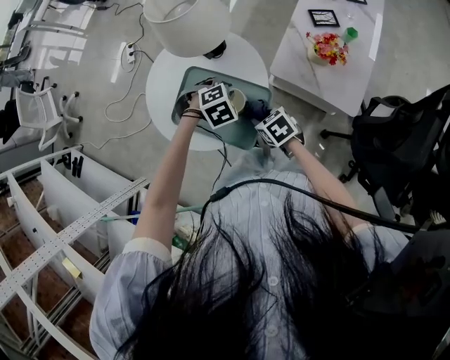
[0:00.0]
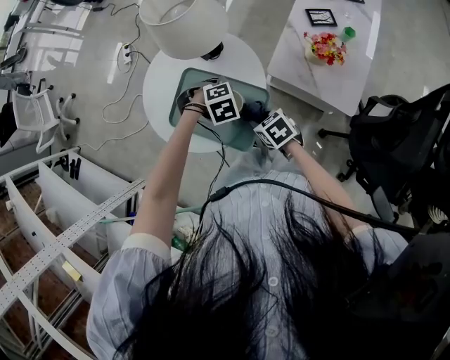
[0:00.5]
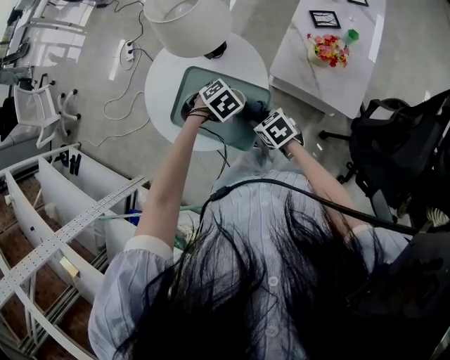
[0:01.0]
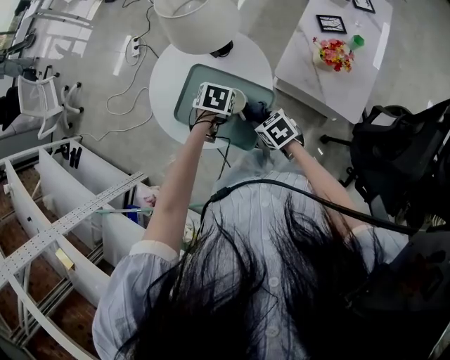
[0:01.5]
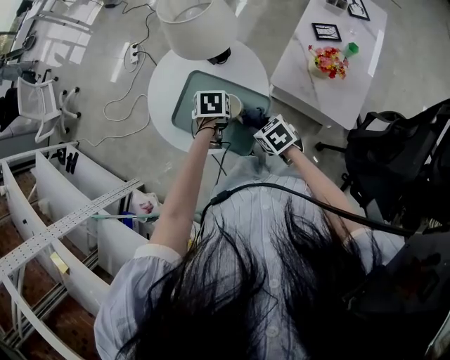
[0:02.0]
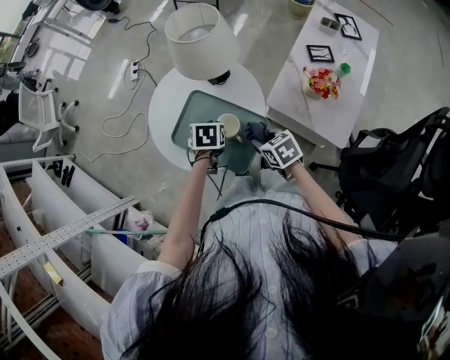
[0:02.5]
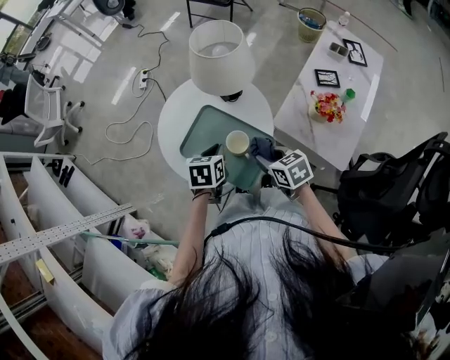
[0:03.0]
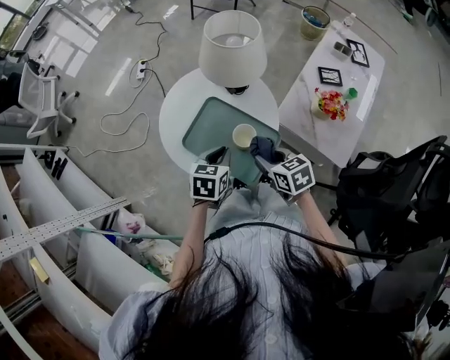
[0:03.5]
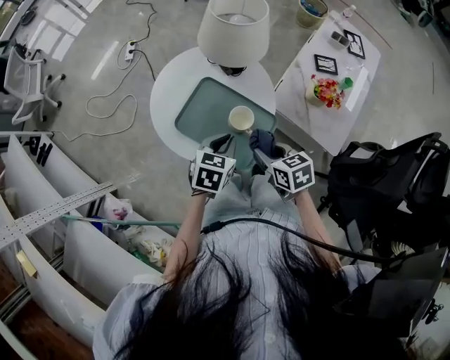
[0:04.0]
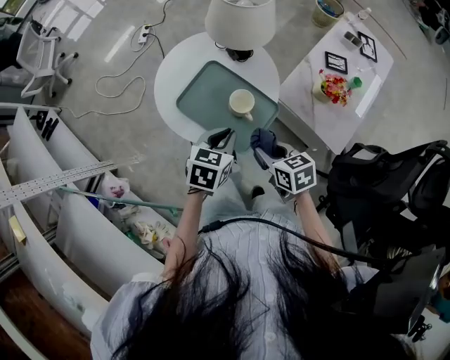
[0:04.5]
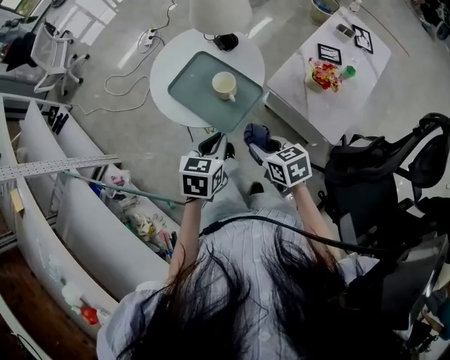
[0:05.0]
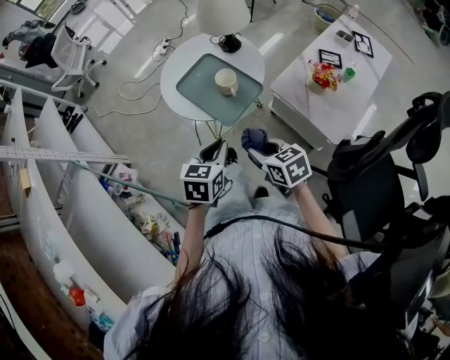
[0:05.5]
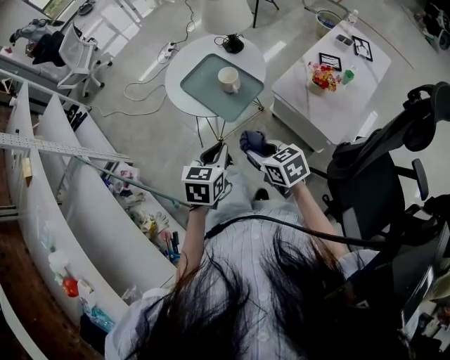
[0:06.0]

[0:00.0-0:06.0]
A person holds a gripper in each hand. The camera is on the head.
0:00.0 to 0:02.0: The left gripper ends up about 5 cm from where it was, and rolls counterclockwise, seen from behind, by roughly 70 degrees.
0:02.0 to 0:04.0: The right gripper moves upward, some 10 cm. The left gripper is displaced backward and upward by roughly 15 cm, and turns by some 30 degrees.
0:04.0 to 0:06.0: Both grippers travel together backward, roughly 25 cm. The left gripper turns by some 20 degrees; the right gripper swivels about 20 degrees.

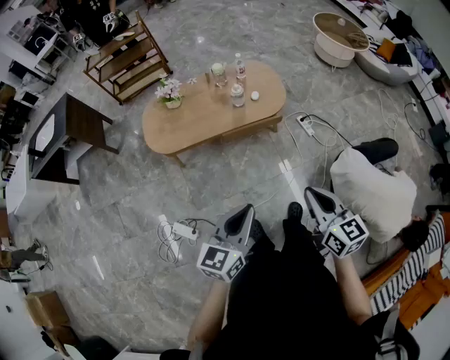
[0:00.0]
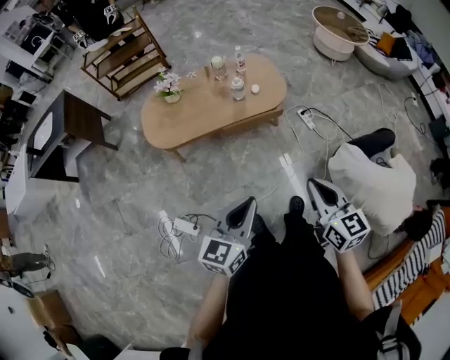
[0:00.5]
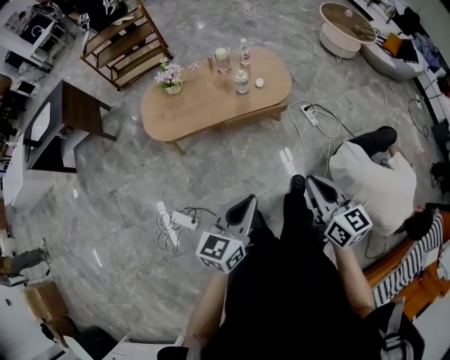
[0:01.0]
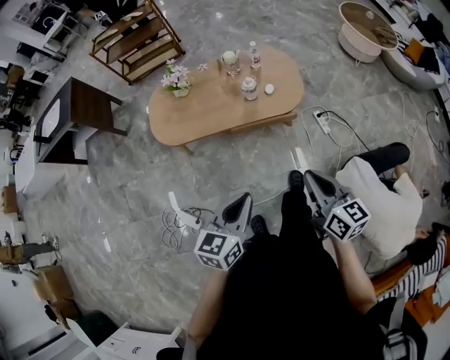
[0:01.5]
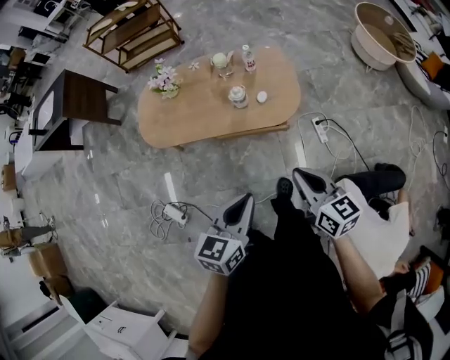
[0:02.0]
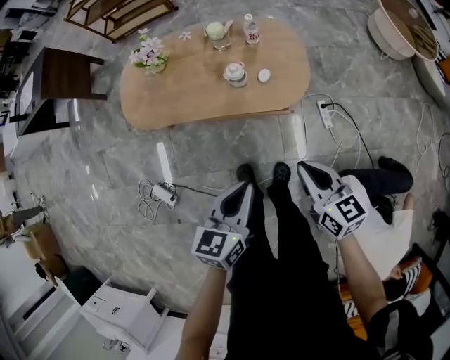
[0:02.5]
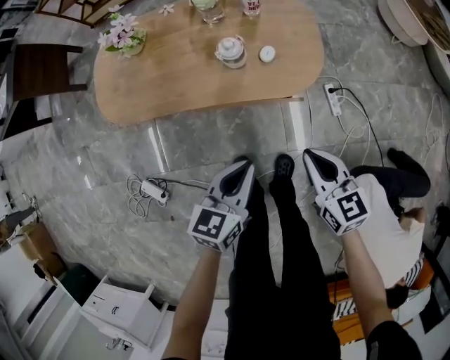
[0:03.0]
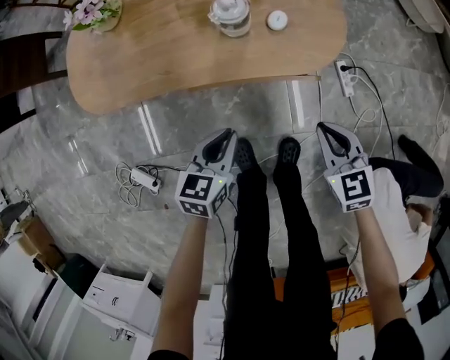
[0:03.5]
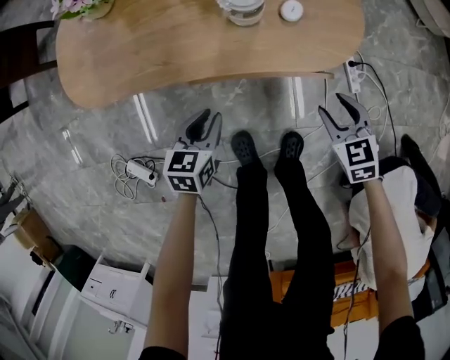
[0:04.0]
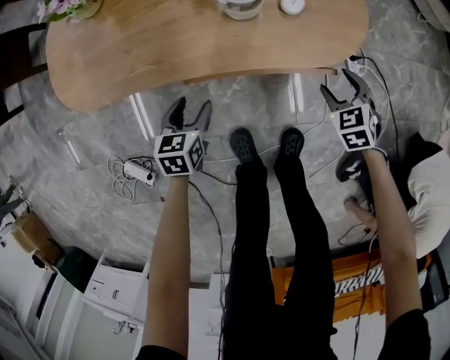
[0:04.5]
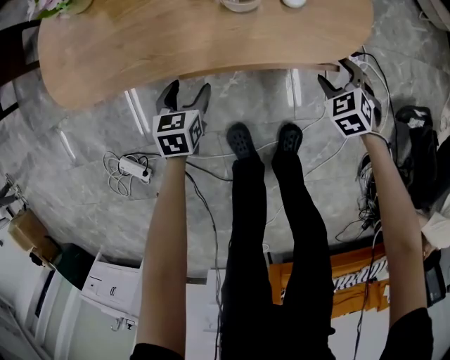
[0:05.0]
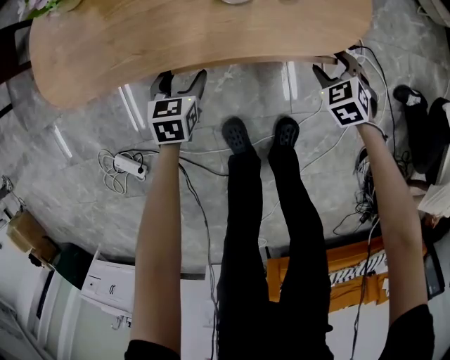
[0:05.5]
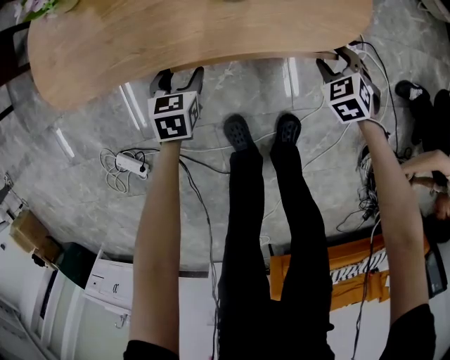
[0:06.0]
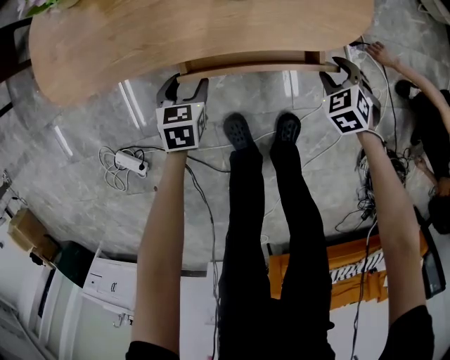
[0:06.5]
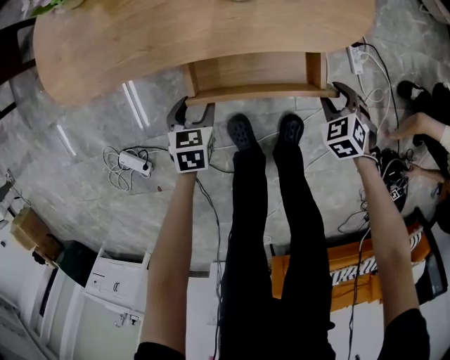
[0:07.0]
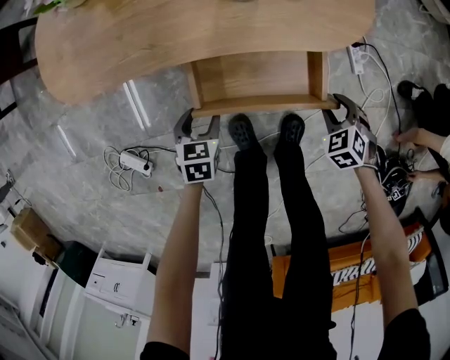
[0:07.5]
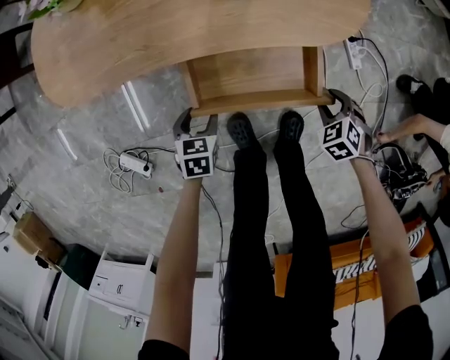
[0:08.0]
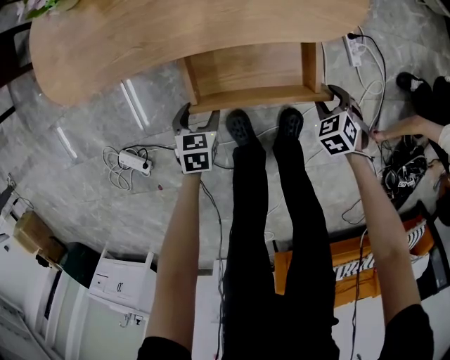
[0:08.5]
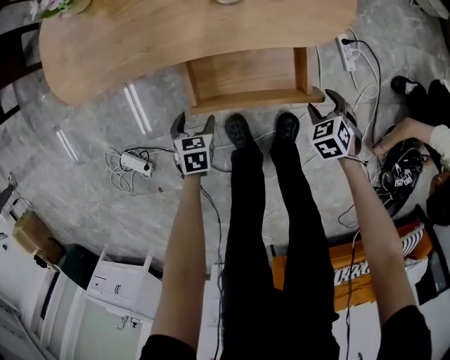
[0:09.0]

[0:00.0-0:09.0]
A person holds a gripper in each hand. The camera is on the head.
0:00.0 to 0:02.0: The left gripper goes approximately 25 cm forward and to the right. Meanwhile the right gripper goes approximately 30 cm forward, and changes its angle by about 20 degrees.
0:02.0 to 0:04.5: Both grippers move downward, some 50 cm. The right gripper points its fingers about 40 degrees further downward, and opens. The left gripper turns by some 20 degrees, and opens its fingers.
0:04.5 to 0:07.0: The right gripper heads backward, covering about 10 cm. The left gripper changes place by some 5 cm.
0:07.0 to 0:09.0: The left gripper travels backward by roughly 5 cm.

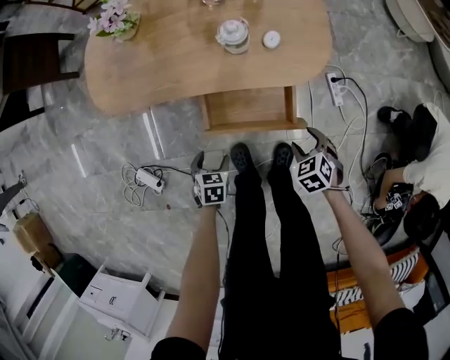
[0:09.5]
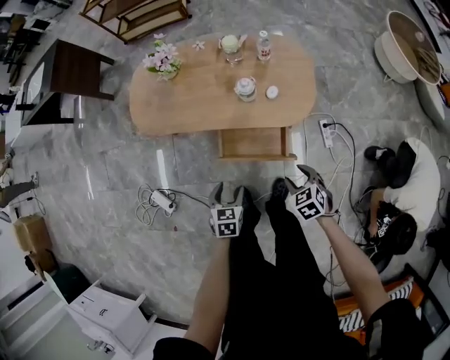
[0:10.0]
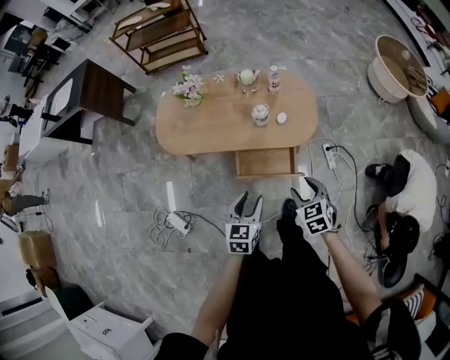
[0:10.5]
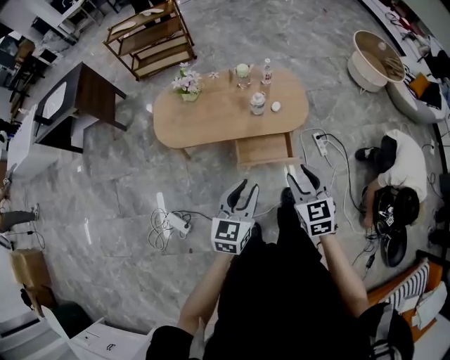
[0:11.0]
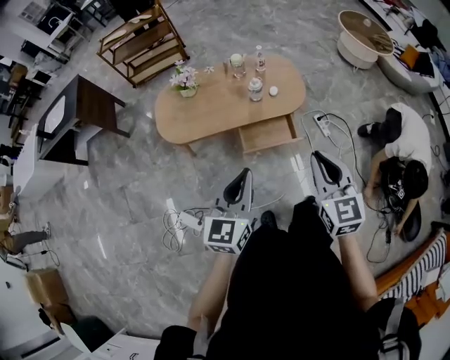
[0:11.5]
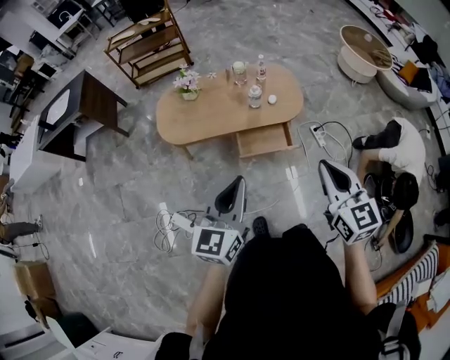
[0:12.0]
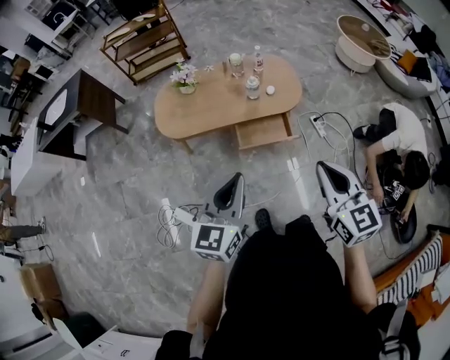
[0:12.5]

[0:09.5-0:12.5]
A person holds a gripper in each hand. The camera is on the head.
0:09.5 to 0:11.0: The two grippers go approximately 50 cm upward. The right gripper points its fingers approximately 40 degrees further upward. The left gripper tips its fingers upward by roughly 50 degrees, and closes.
0:11.0 to 0:12.5: The two grippers go about 15 cm backward and upward. The right gripper closes.

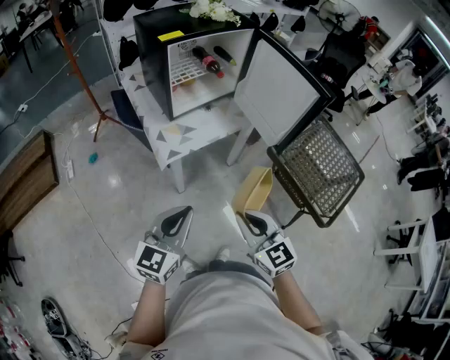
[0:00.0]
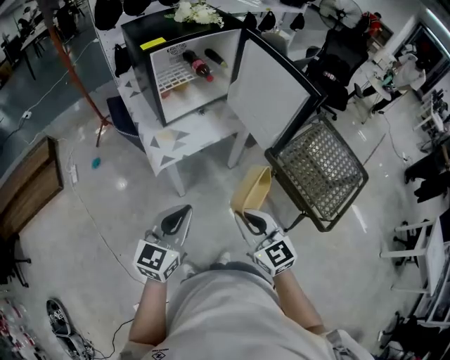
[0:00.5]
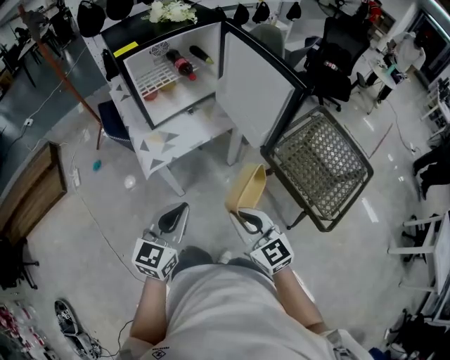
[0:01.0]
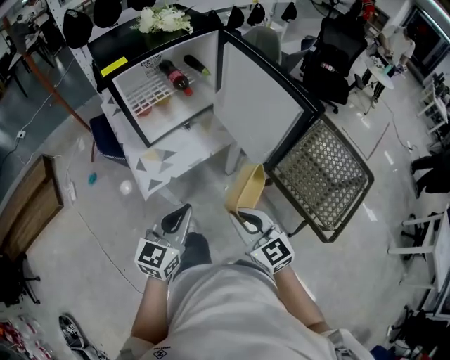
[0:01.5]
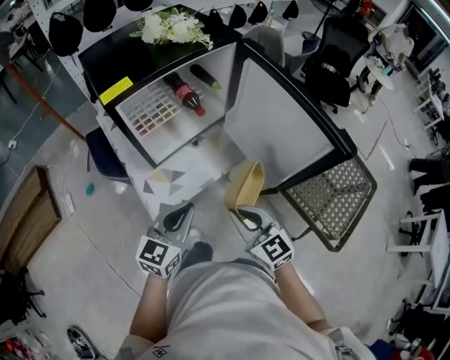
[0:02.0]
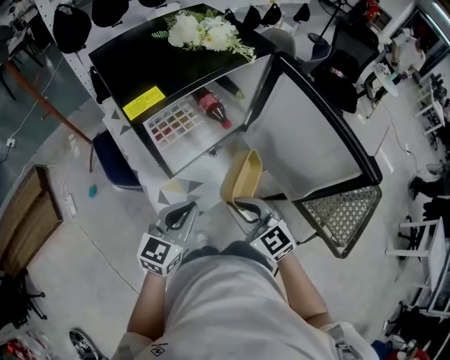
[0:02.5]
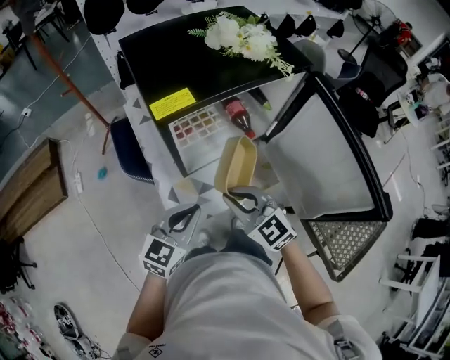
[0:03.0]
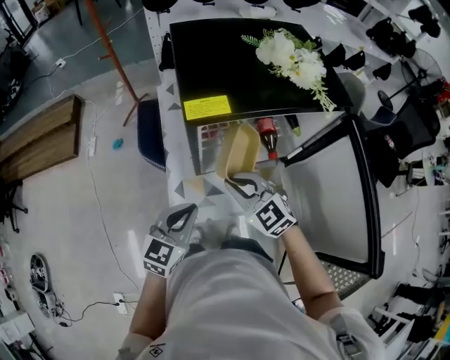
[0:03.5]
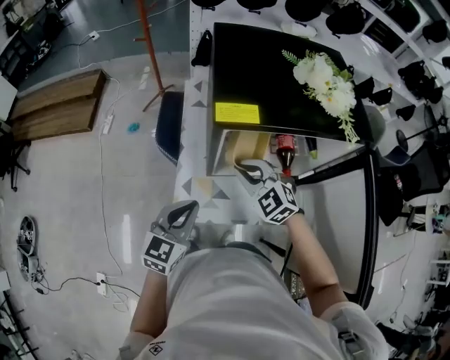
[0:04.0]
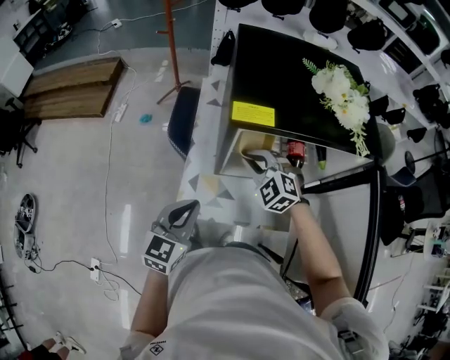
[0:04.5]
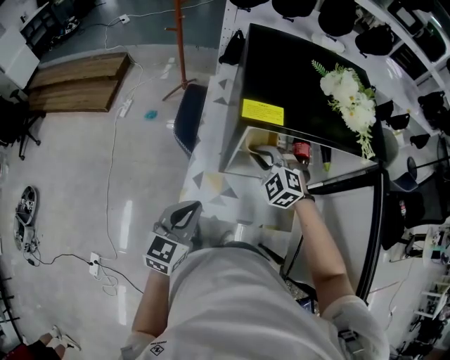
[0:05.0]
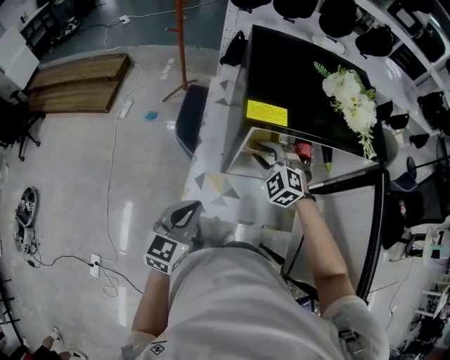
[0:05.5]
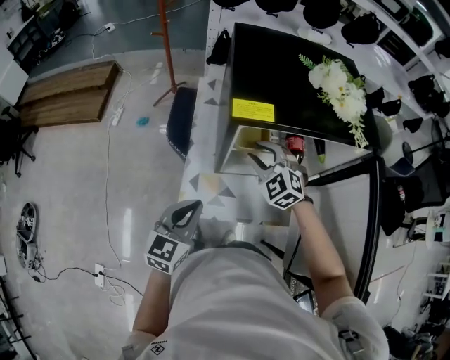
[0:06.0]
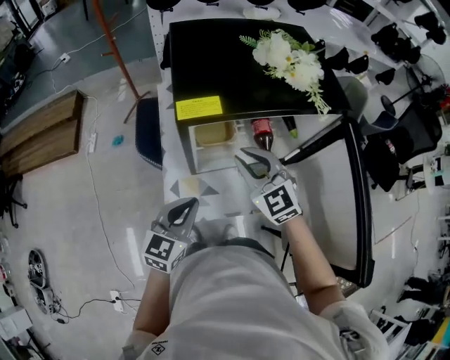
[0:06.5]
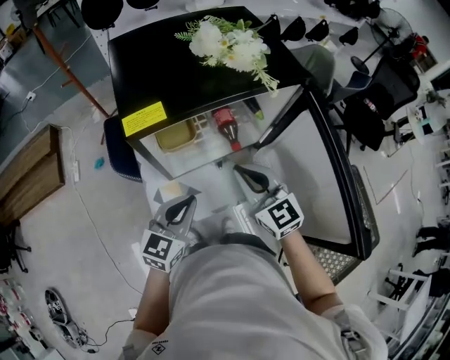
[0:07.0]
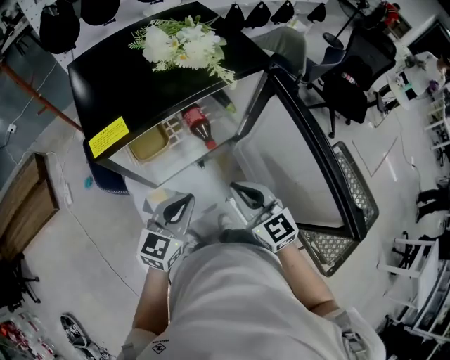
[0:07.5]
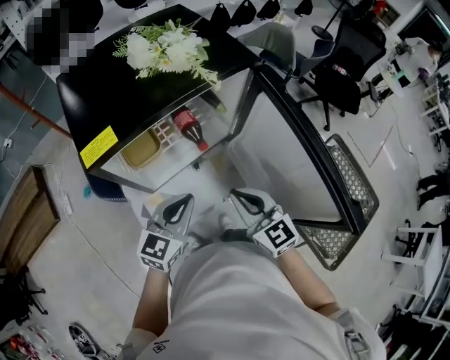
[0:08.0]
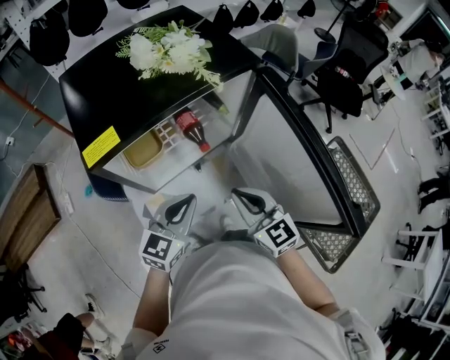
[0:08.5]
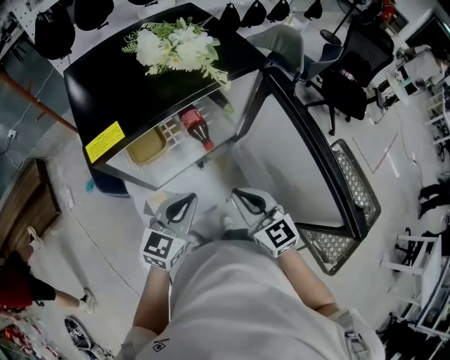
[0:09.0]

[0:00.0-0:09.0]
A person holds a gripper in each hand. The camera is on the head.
0:00.0 to 0:02.0: Both grippers move forward, about 25 cm.
0:02.0 to 0:04.5: The right gripper changes place by approximately 35 cm, and twists roughly 60 degrees counterclockwise, seen from behind; the left gripper shifts by about 15 cm, and turns by about 40 degrees.
0:04.5 to 0:07.0: The right gripper travels to the right, backward and upward by roughly 20 cm, twists approximately 50 degrees clockwise, seen from behind, and opens, then closes once more. Meanwhile the left gripper goes roughly 10 cm to the right, and turns by approximately 30 degrees.
0:07.0 to 0:09.0: The right gripper travels to the right and backward by roughly 10 cm. Meanwhile the left gripper shifts some 5 cm to the right.
